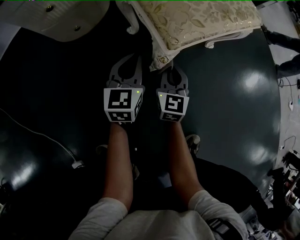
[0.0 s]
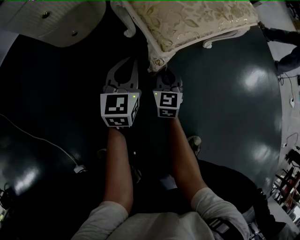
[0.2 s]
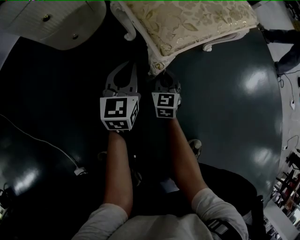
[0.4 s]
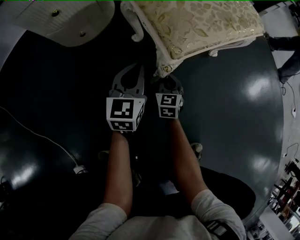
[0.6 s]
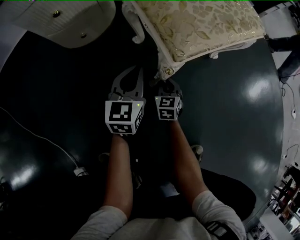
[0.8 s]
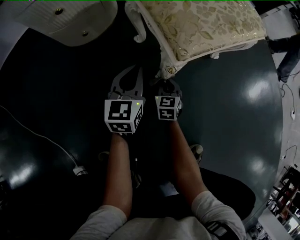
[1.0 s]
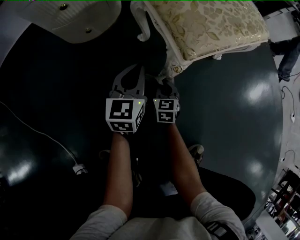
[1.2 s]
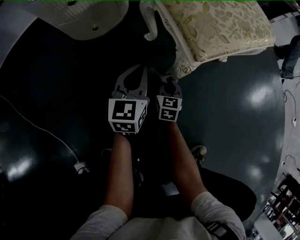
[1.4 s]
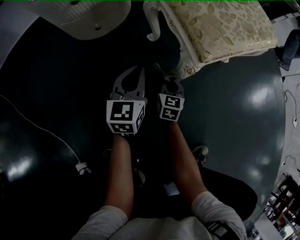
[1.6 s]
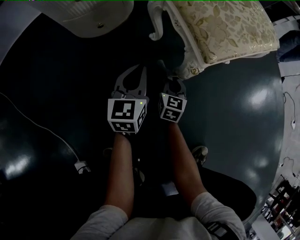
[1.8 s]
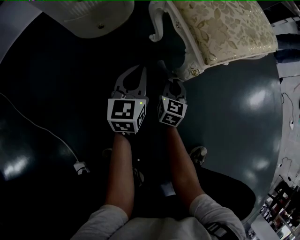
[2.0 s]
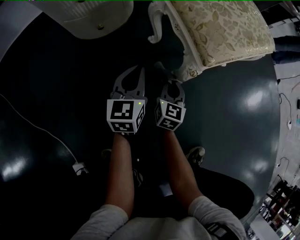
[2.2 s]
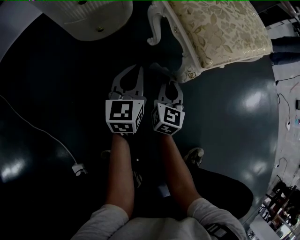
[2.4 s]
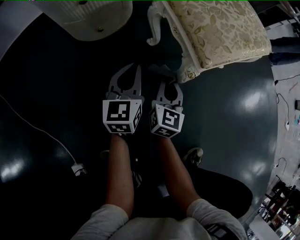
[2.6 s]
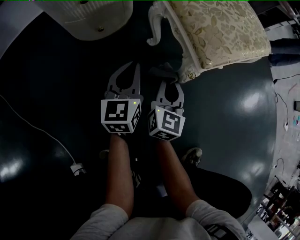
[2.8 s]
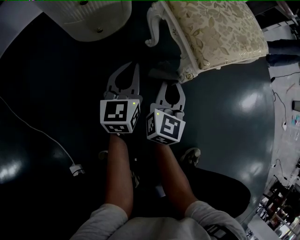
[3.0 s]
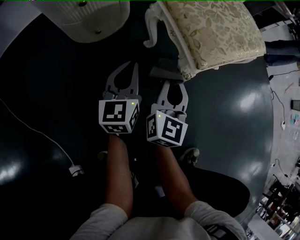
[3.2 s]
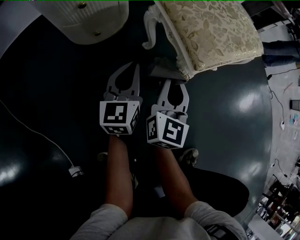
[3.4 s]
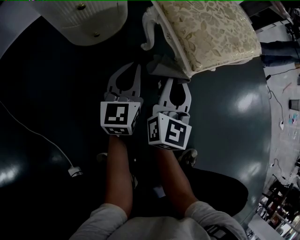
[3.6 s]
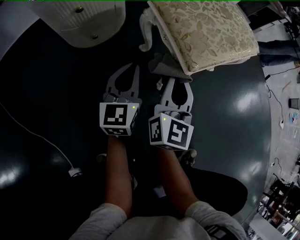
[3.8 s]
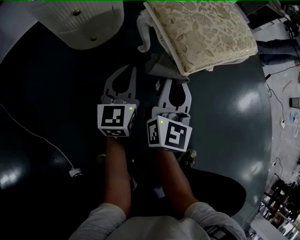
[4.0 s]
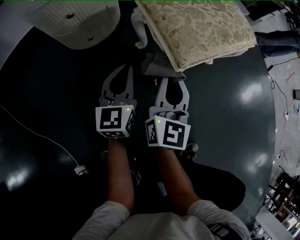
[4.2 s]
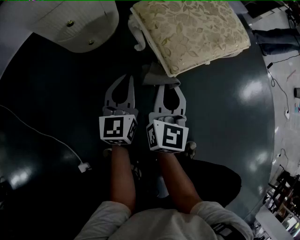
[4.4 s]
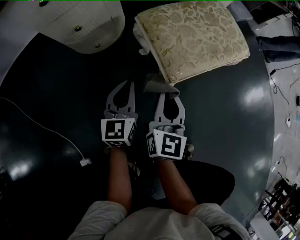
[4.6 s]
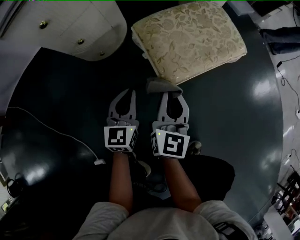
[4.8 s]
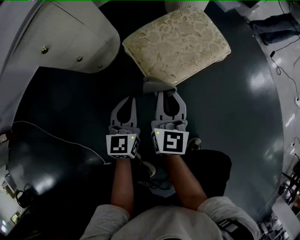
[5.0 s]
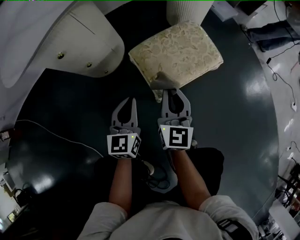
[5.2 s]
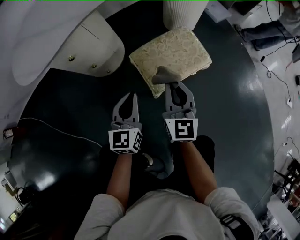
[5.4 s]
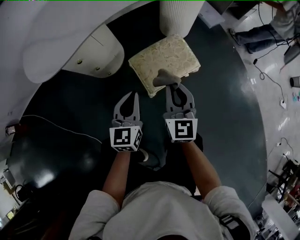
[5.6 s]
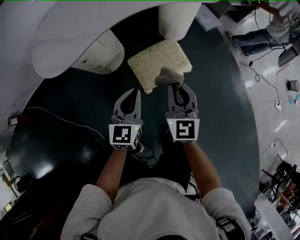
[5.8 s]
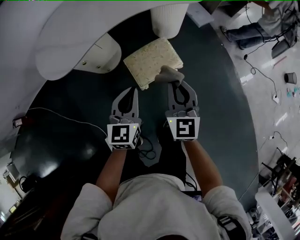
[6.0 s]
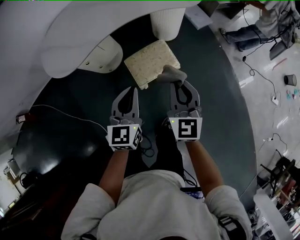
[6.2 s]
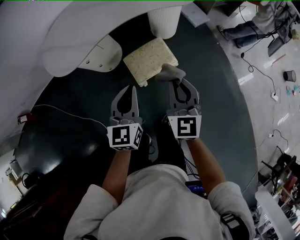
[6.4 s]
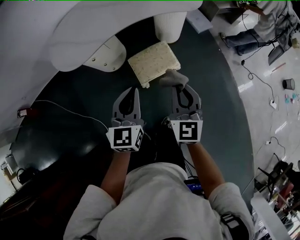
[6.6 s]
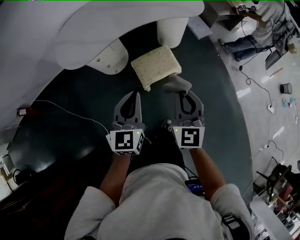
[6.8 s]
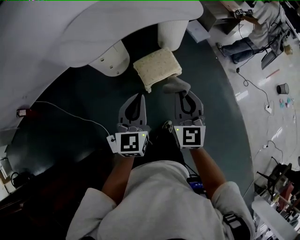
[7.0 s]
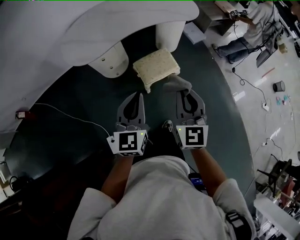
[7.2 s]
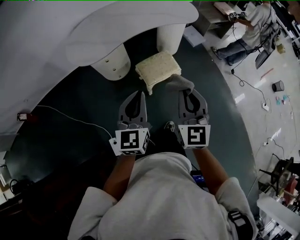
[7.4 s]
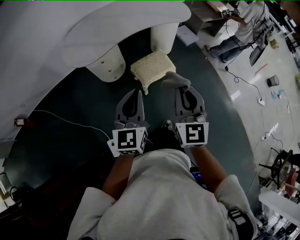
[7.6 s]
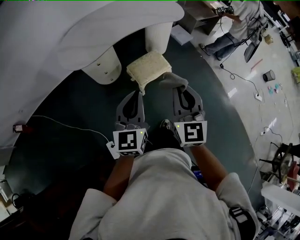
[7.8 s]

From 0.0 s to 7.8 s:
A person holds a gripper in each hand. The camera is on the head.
From 0.0 s to 1.6 s: The right gripper moves downward and to the left, some 15 cm; the left gripper heads to the left, covering approximately 5 cm.
From 1.6 s to 3.2 s: The right gripper travels upward by about 25 cm, and turns by about 30 degrees; the left gripper shifts roughly 5 cm upward.
From 3.2 s to 4.6 s: The grippers both shift upward by about 5 cm.
From 4.6 s to 6.2 s: Both grippers travel together upward, some 60 cm. The right gripper rotates roughly 20 degrees.
From 6.2 s to 7.8 s: The grippers both shift backward and upward by approximately 30 cm.

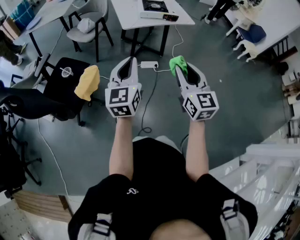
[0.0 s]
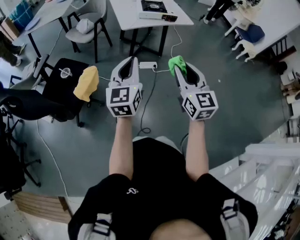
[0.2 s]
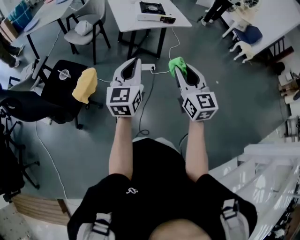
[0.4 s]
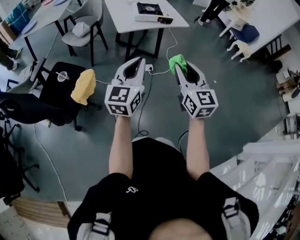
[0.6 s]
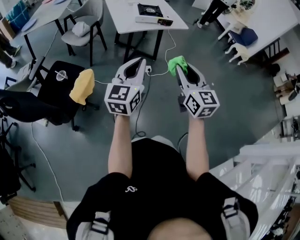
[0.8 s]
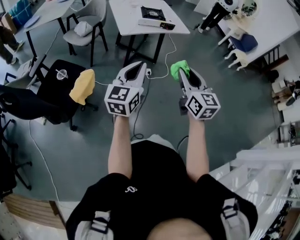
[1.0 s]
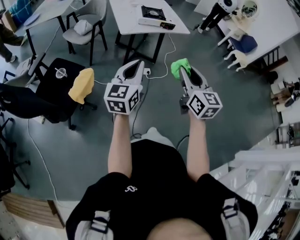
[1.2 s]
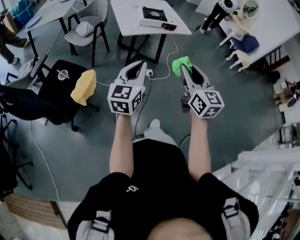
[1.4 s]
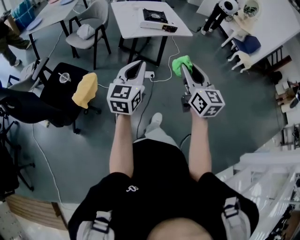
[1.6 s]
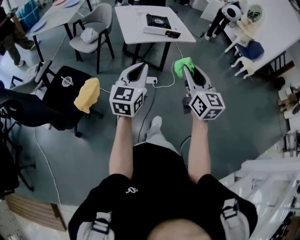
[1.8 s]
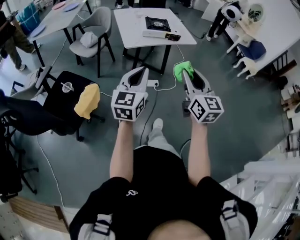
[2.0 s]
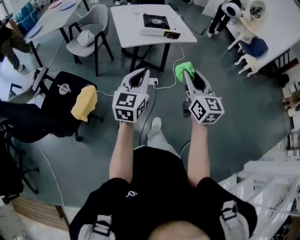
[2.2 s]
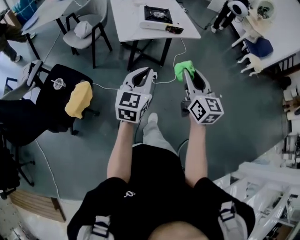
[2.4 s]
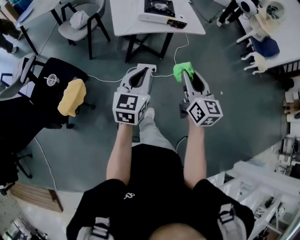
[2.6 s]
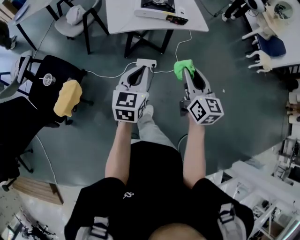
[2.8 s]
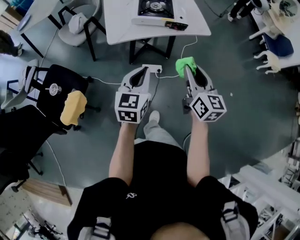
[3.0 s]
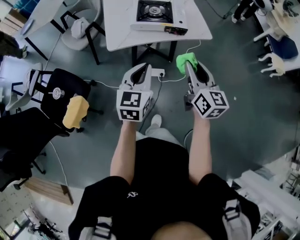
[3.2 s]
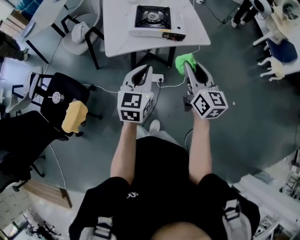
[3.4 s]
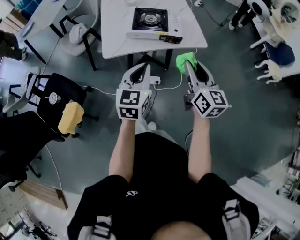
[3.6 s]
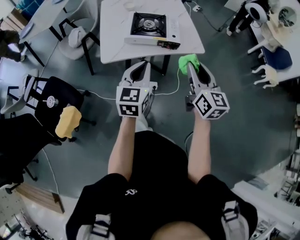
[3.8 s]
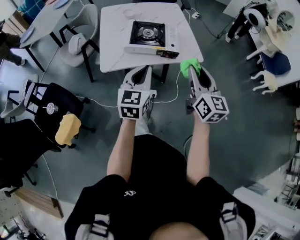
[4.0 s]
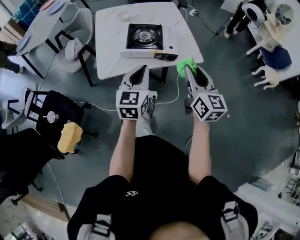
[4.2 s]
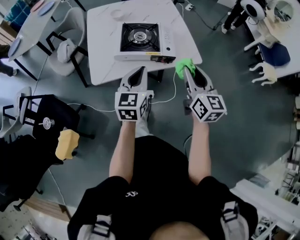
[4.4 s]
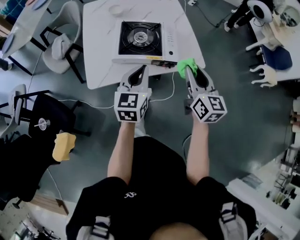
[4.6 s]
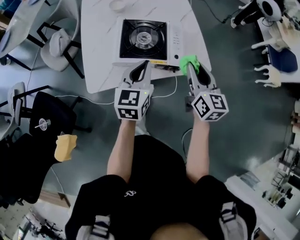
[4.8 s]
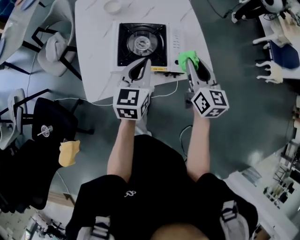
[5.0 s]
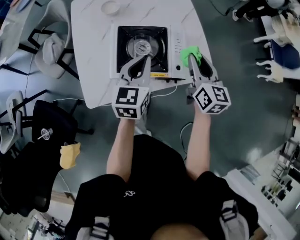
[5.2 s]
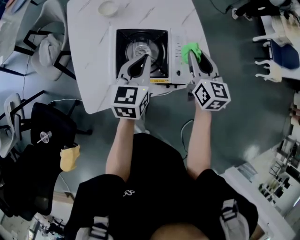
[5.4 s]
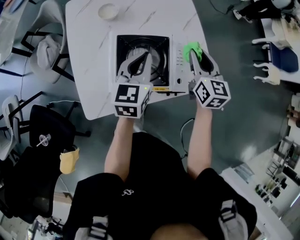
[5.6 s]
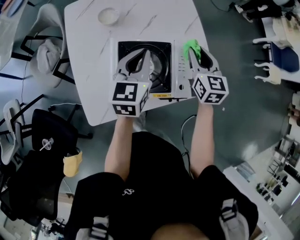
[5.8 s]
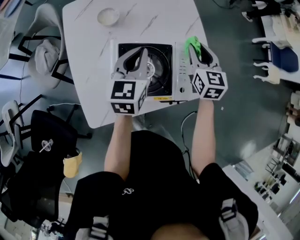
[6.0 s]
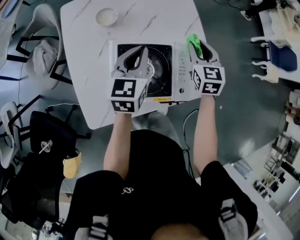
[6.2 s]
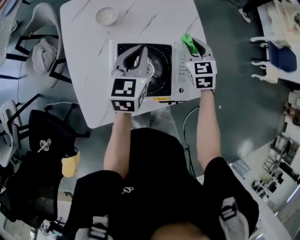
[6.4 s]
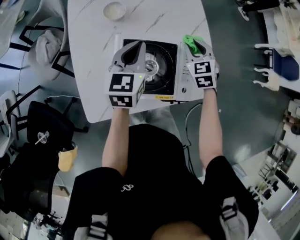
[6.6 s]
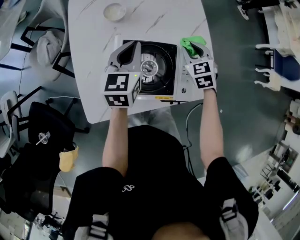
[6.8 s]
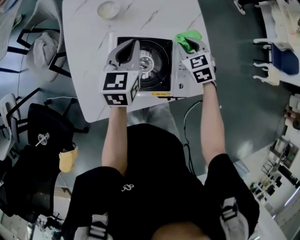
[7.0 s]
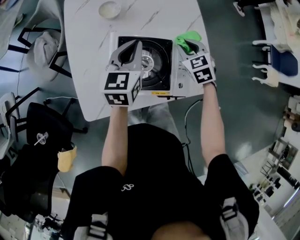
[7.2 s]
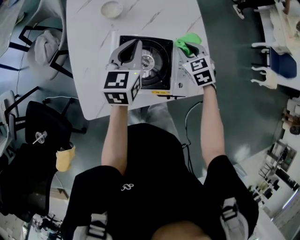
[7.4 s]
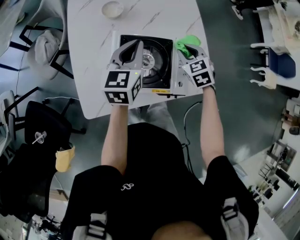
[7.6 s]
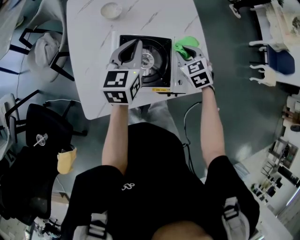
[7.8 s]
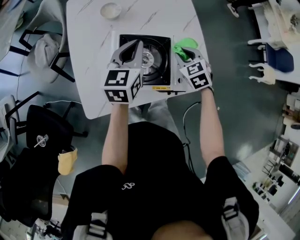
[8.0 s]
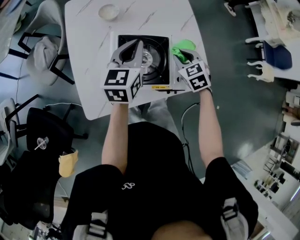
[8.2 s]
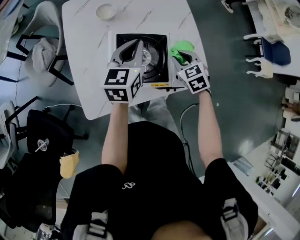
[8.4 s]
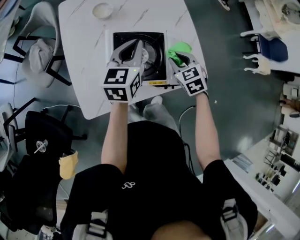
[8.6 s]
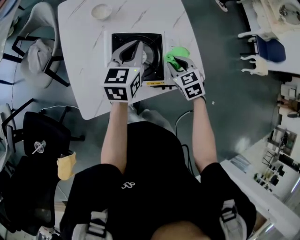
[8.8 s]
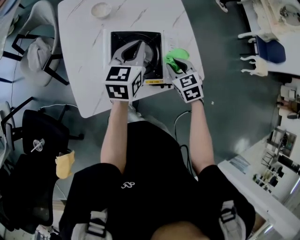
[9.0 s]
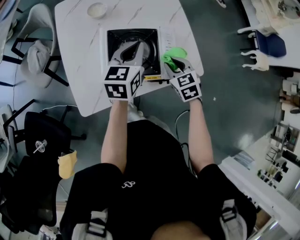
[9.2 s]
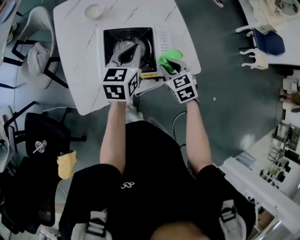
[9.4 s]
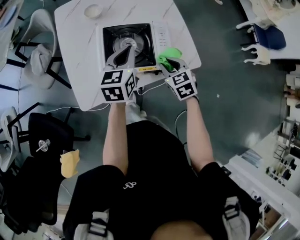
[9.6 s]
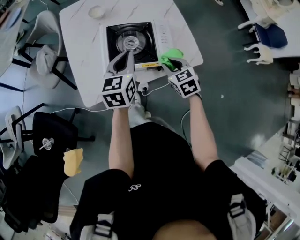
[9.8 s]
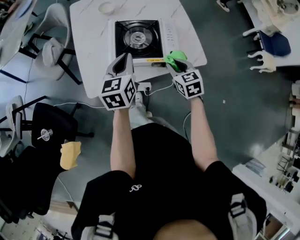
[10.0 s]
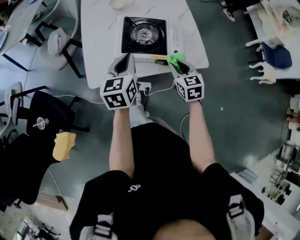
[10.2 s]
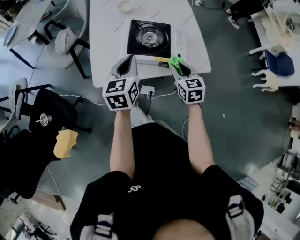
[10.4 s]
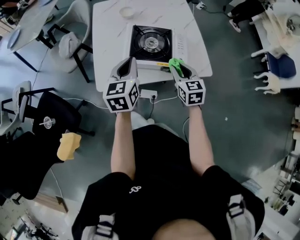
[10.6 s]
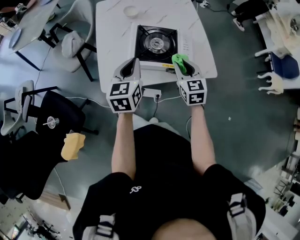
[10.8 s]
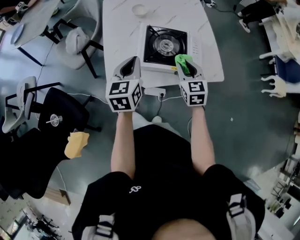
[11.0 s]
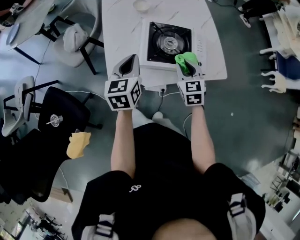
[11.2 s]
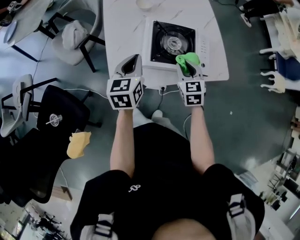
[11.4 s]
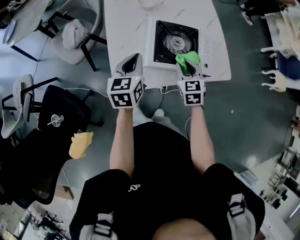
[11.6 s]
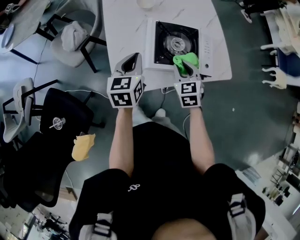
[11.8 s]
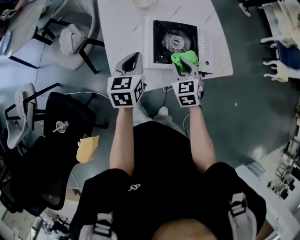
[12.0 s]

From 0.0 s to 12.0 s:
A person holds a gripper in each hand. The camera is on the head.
From 0.0 s to 1.6 s: The grippers move only a little.
From 1.6 s to 3.0 s: The right gripper shifts about 35 cm forward. The left gripper moves forward and to the right, about 35 cm, and rotates some 20 degrees.
From 3.0 s to 4.4 s: The two grippers go approximately 20 cm forward.
From 4.4 s to 6.0 s: Both grippers travel together forward, roughly 35 cm. The right gripper turns by some 20 degrees.
From 6.0 s to 7.6 s: The right gripper is displaced downward by roughly 10 cm, and swivels some 40 degrees.
From 7.6 s to 9.0 s: The left gripper shifts by about 5 cm. Meanwhile the right gripper shifts about 10 cm backward.
From 9.0 s to 10.4 s: The right gripper heads backward, covering approximately 10 cm, and changes its angle by some 20 degrees. The left gripper travels backward by about 20 cm.
From 10.4 s to 12.0 s: The two grippers go about 15 cm to the left and forward.

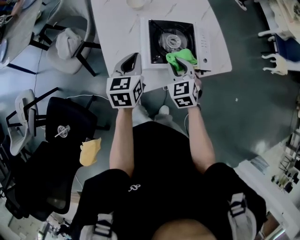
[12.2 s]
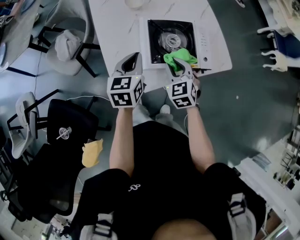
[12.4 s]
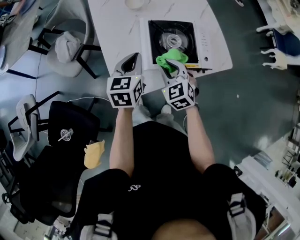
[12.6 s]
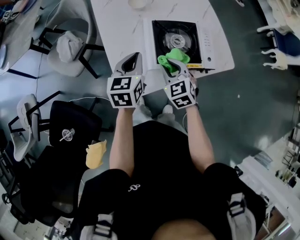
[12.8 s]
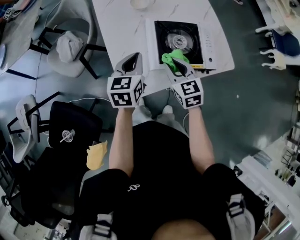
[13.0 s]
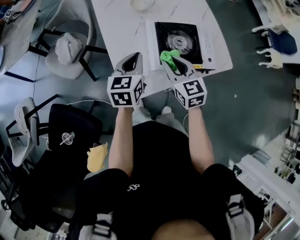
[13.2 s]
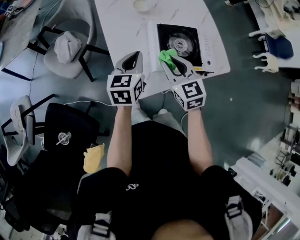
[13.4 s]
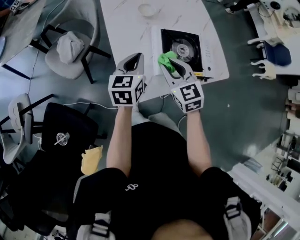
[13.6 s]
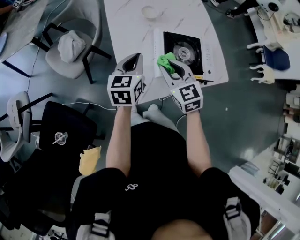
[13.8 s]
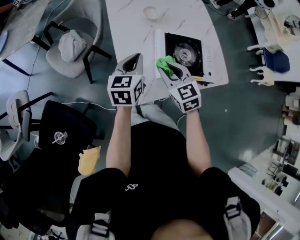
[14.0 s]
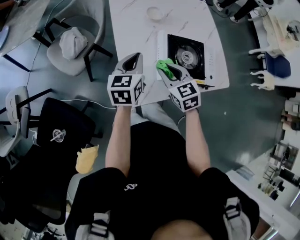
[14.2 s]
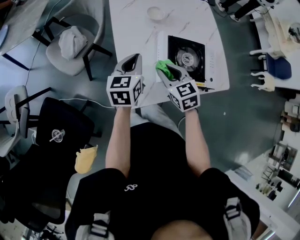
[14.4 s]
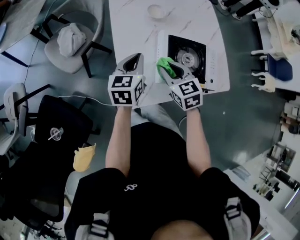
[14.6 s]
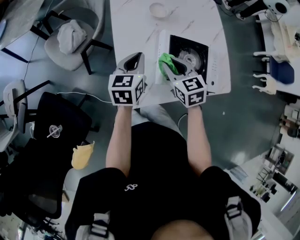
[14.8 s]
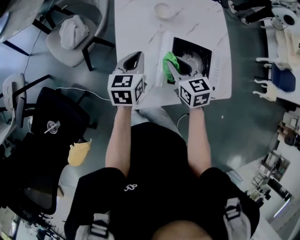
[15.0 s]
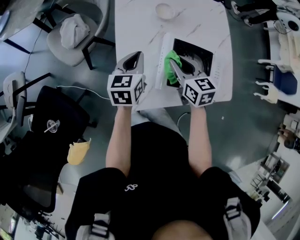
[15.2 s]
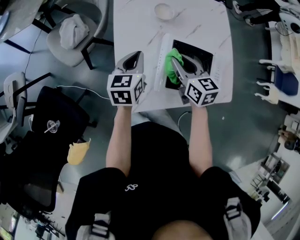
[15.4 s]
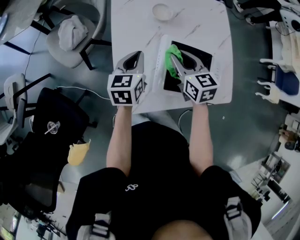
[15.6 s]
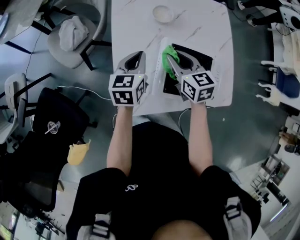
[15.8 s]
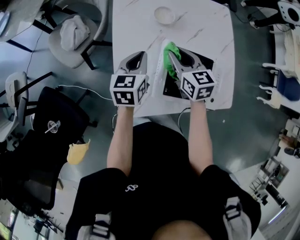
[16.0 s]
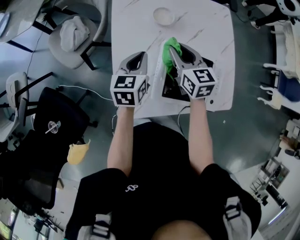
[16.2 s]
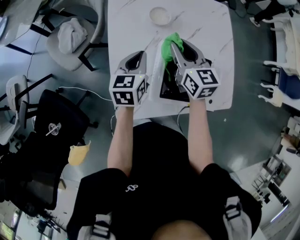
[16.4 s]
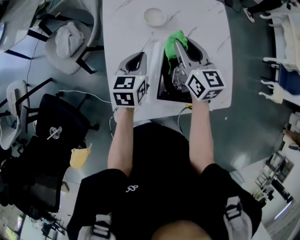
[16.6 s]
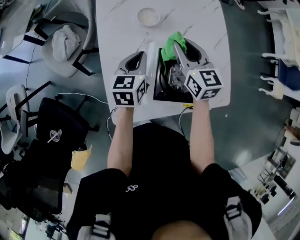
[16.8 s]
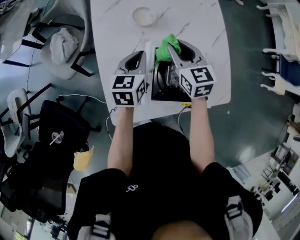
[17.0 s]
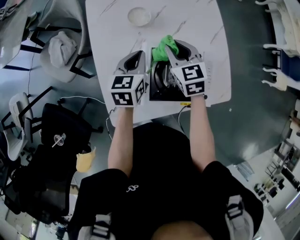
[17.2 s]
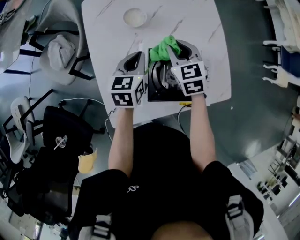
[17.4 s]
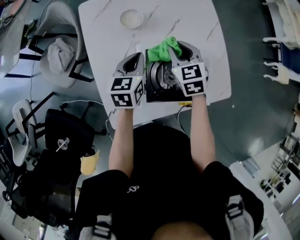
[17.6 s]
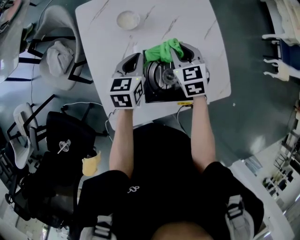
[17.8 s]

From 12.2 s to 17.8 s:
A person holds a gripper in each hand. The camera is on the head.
From 12.2 s to 13.6 s: The left gripper travels to the left by about 5 cm. The right gripper is displaced to the left and upward by some 15 cm.
From 13.6 s to 15.0 s: The left gripper shifts some 5 cm forward. The right gripper is displaced forward and downward by roughly 10 cm.
From 15.0 s to 16.4 s: The left gripper heads forward, covering some 5 cm, while the right gripper goes approximately 10 cm forward.
From 16.4 s to 17.8 s: The left gripper moves to the right, some 10 cm. Meanwhile the right gripper is displaced to the right and downward by roughly 15 cm, and changes its angle by some 30 degrees.
